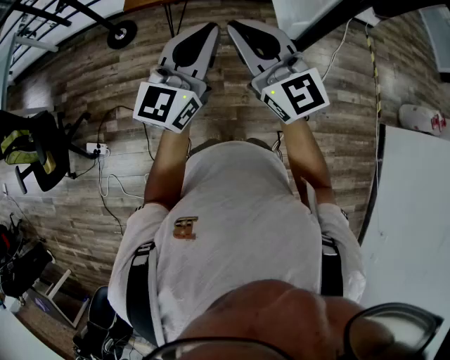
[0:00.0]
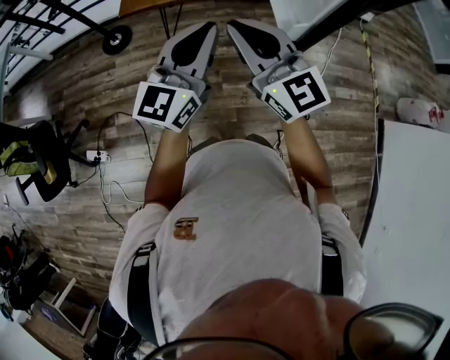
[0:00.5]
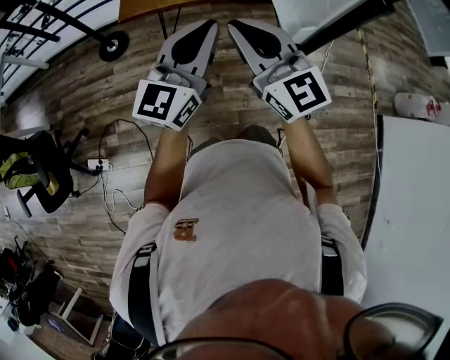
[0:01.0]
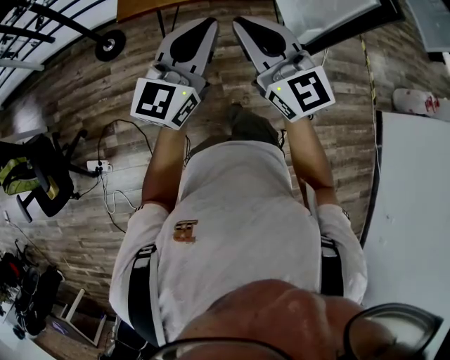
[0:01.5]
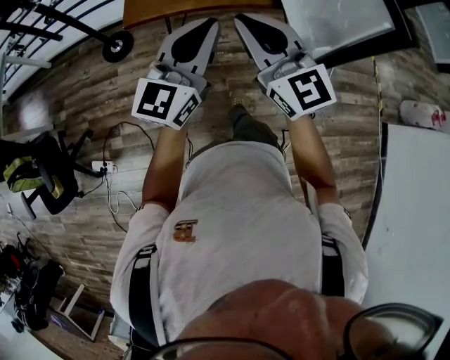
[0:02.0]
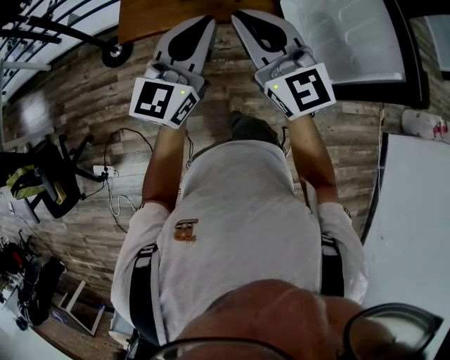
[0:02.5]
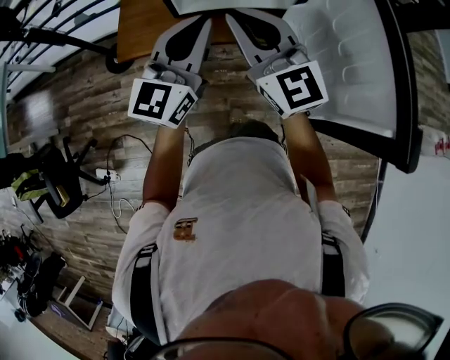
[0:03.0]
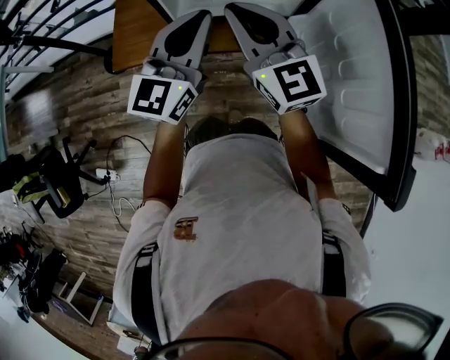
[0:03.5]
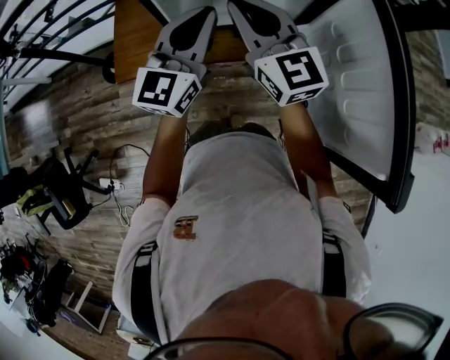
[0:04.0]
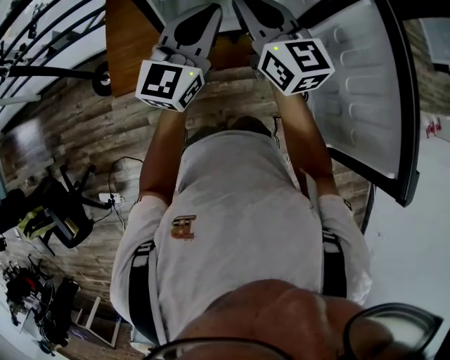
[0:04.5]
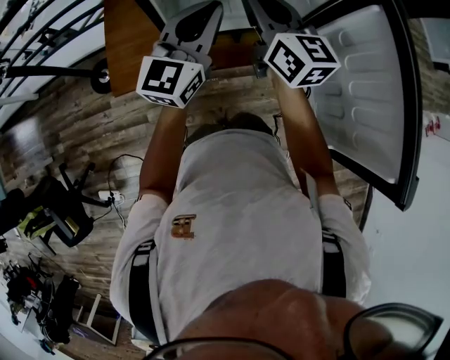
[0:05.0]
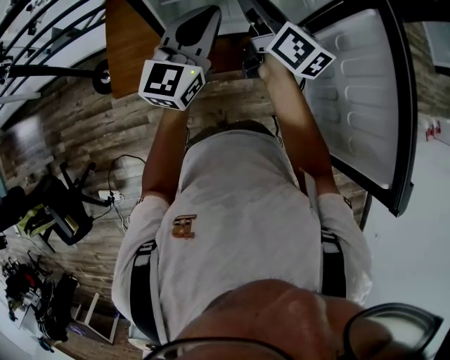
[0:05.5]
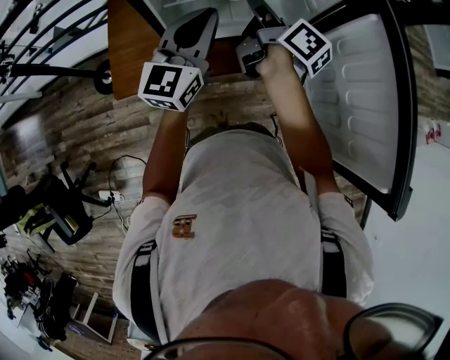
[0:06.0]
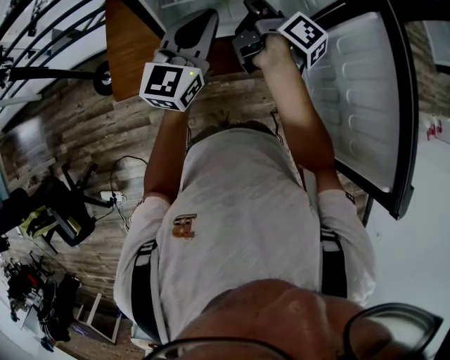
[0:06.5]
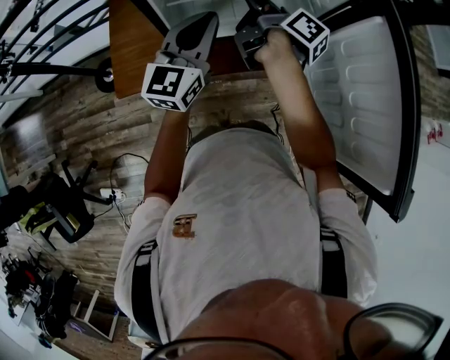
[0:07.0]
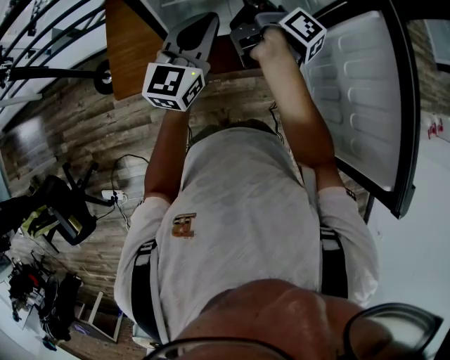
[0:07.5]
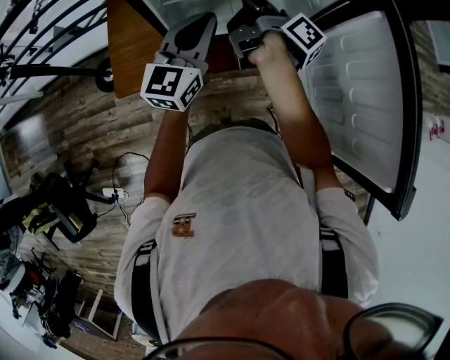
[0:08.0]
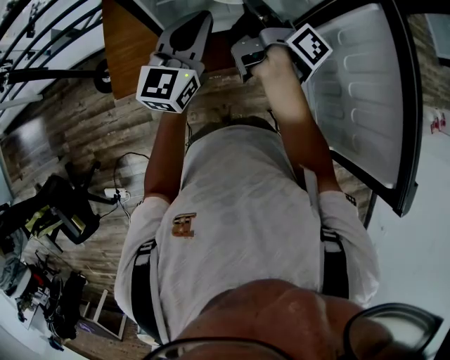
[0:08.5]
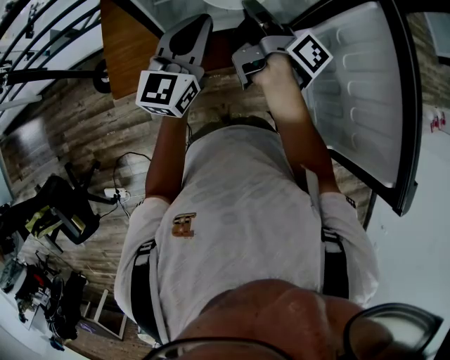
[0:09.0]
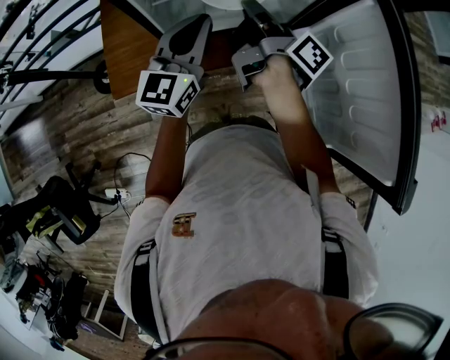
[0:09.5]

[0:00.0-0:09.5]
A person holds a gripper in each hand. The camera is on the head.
0.0 to 2.0 s: Both grippers travel together forward and to the left, about 20 cm.
2.0 to 4.0 s: Both grippers are carried forward, roughly 40 cm.
4.0 to 5.5 s: The right gripper travels forward and downward by some 15 cm, twists about 40 degrees clockwise, seen from behind, and opens up; the left gripper moves forward, approximately 10 cm.
5.5 to 7.5 s: The right gripper shifts approximately 5 cm downward, rotates around the line of its fingers by about 40 degrees, clockwise from behind, and closes its fingers.
7.5 to 9.5 s: There are only small adjustments of the grippers.

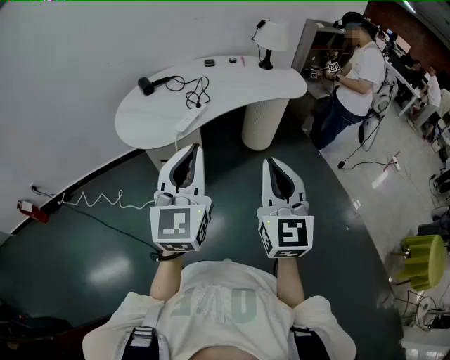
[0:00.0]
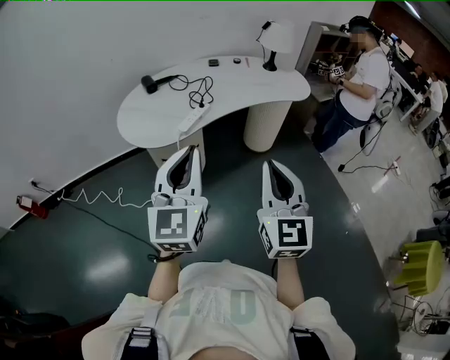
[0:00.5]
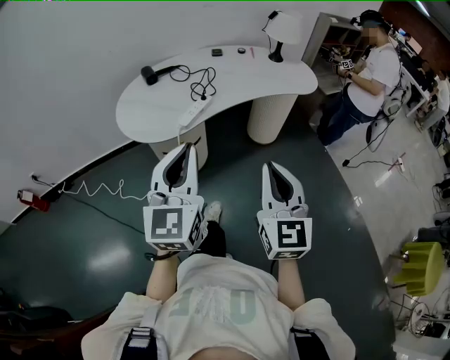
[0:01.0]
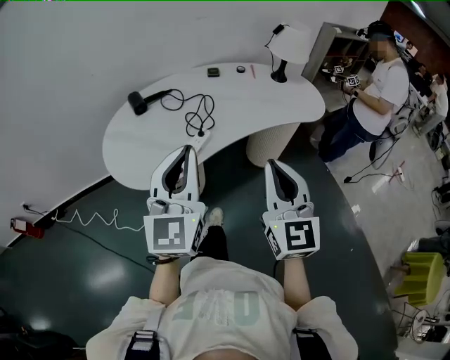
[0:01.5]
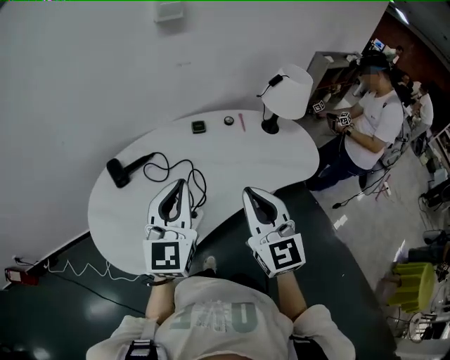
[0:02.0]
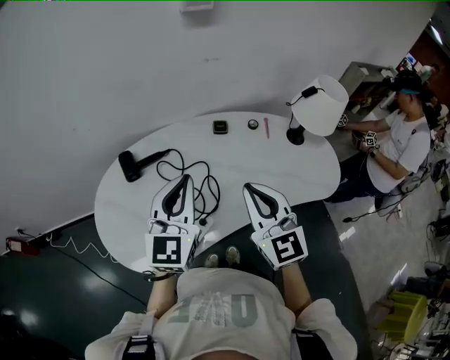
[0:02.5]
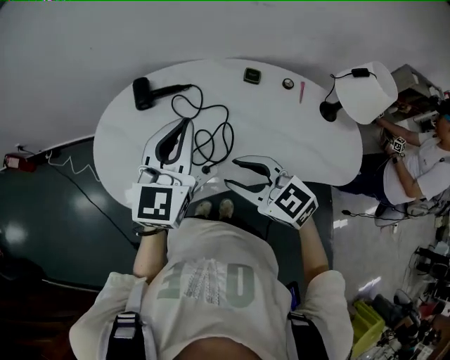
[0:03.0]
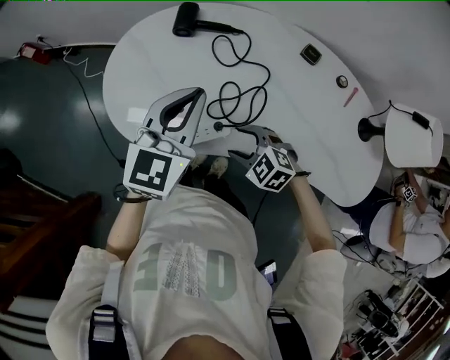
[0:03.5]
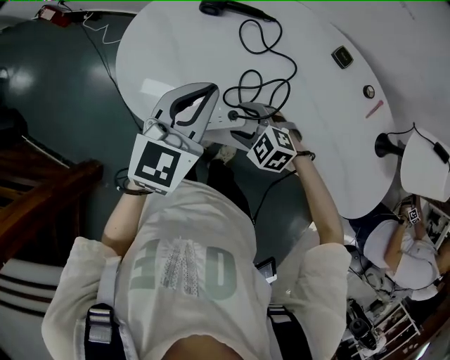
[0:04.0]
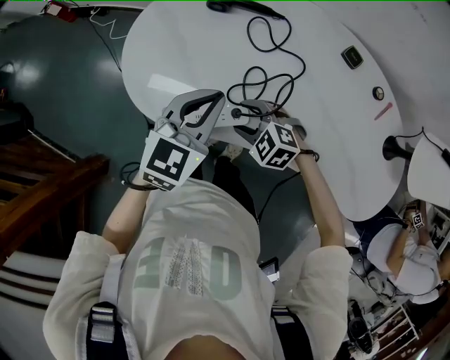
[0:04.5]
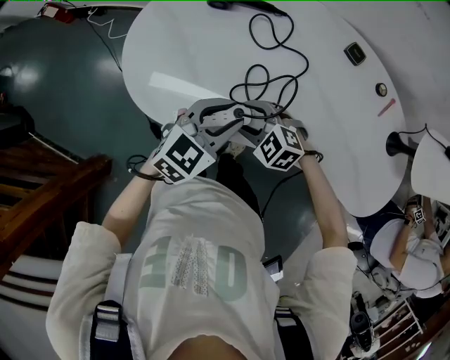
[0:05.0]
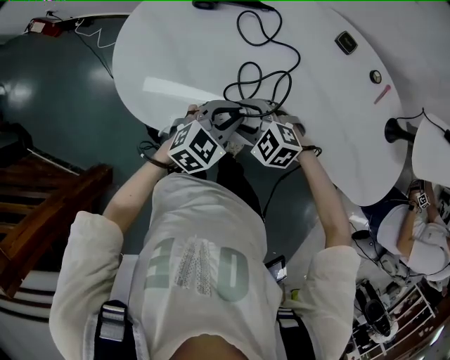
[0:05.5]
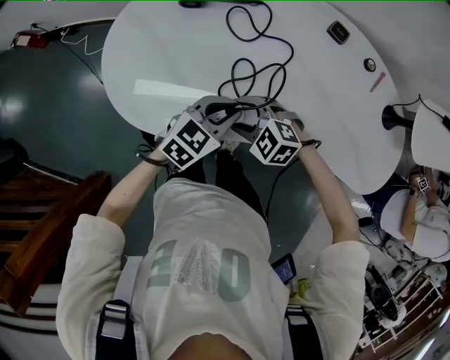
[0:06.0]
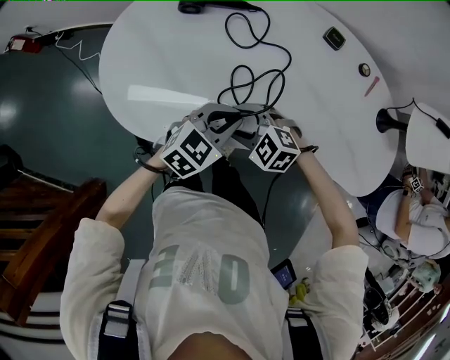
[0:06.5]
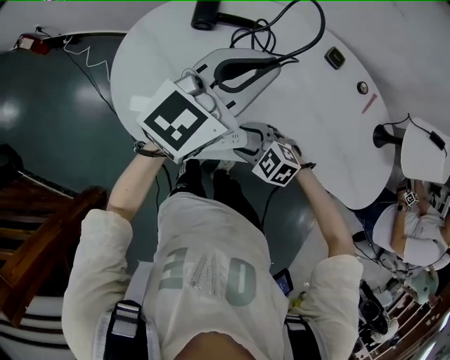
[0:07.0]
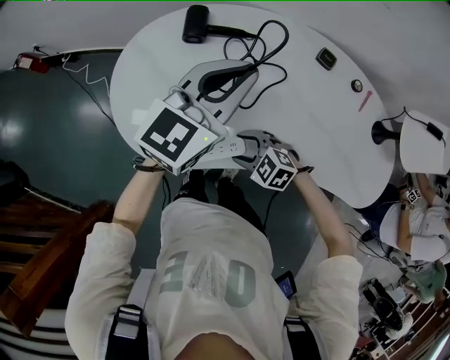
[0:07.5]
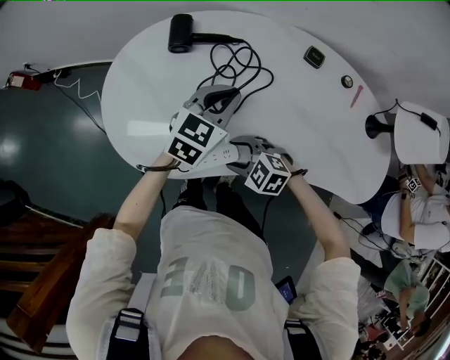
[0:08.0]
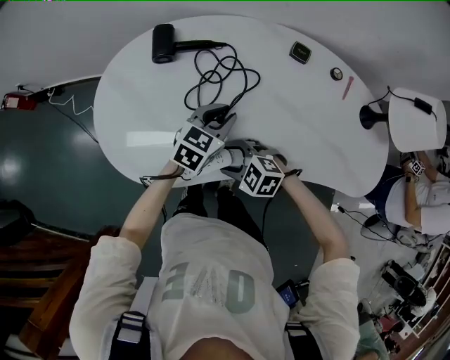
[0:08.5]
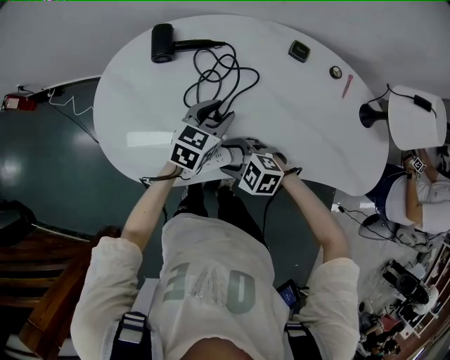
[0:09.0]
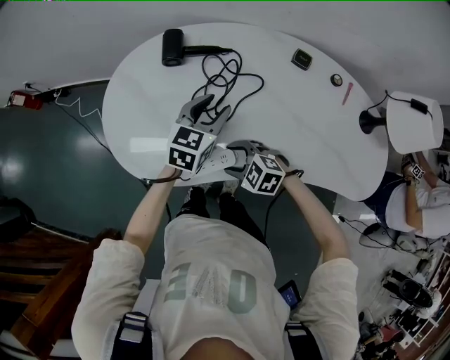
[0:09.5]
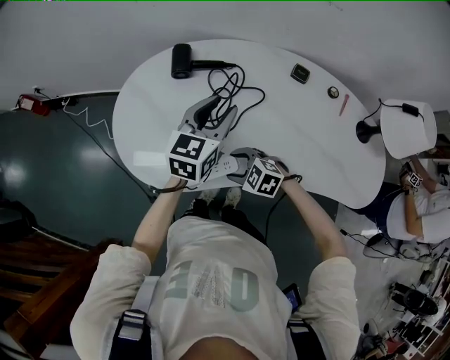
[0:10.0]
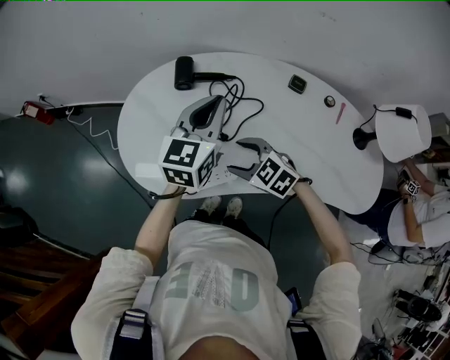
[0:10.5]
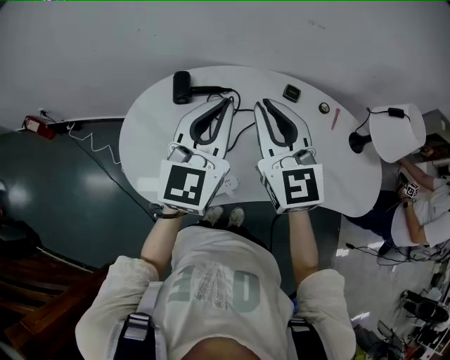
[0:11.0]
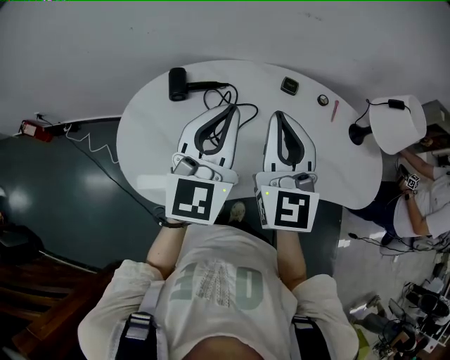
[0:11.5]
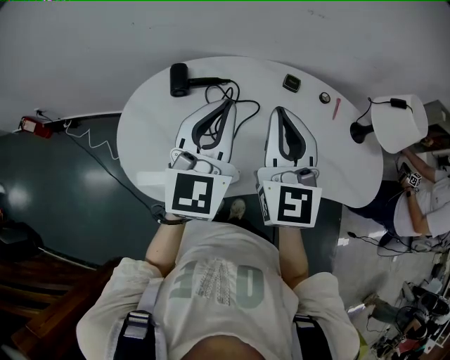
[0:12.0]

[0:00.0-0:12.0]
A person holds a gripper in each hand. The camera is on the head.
0.0 to 2.0 s: Both grippers are carried forward, about 50 cm.
2.0 to 4.0 s: The left gripper is displaced downward by some 15 cm, and changes its angle by approximately 40 degrees. Meanwhile the right gripper moves downward, some 35 cm, tips its fingers downward by approximately 50 degrees, and opens.
4.0 to 6.0 s: The left gripper moves downward, approximately 15 cm, and swivels roughly 30 degrees.
6.0 to 8.0 s: The left gripper goes upward and returns, about 20 cm each way.
8.0 to 10.0 s: The left gripper moves upward, roughly 5 cm, and opens.
10.0 to 12.0 s: The left gripper goes roughly 15 cm upward, rotates some 20 degrees, and closes, while the right gripper shifts approximately 35 cm upward, angles its fingers upward, by about 50 degrees, and closes up.

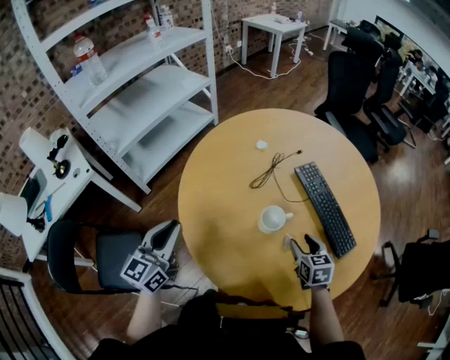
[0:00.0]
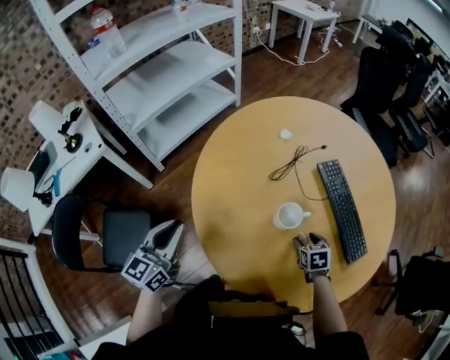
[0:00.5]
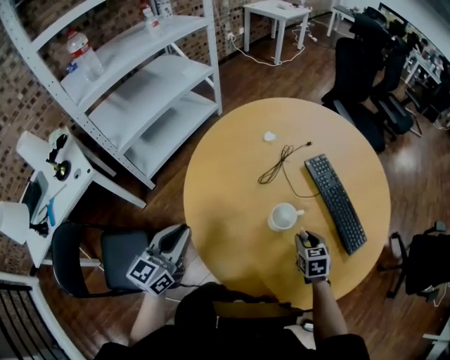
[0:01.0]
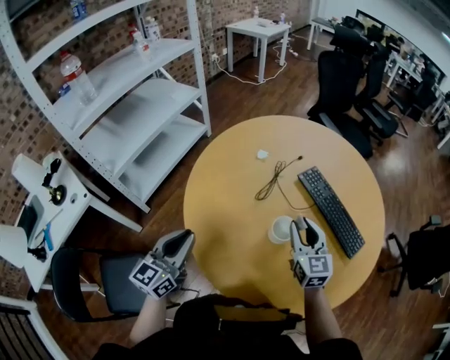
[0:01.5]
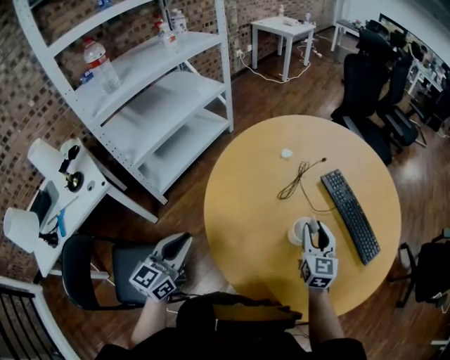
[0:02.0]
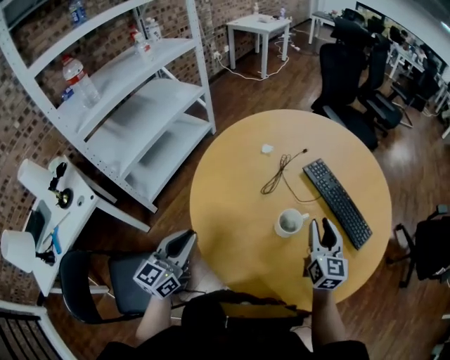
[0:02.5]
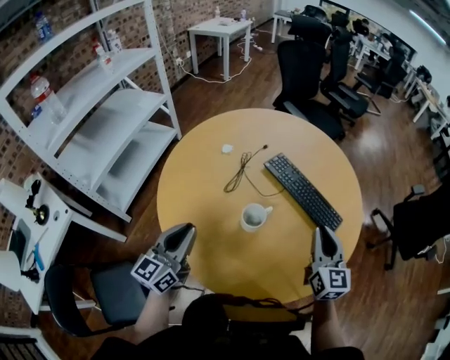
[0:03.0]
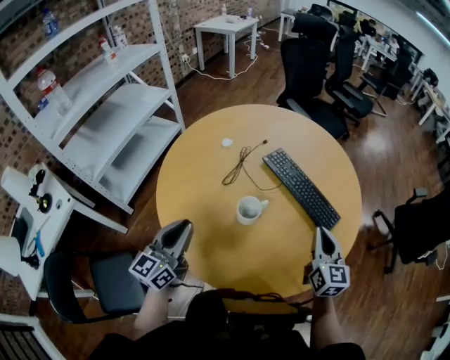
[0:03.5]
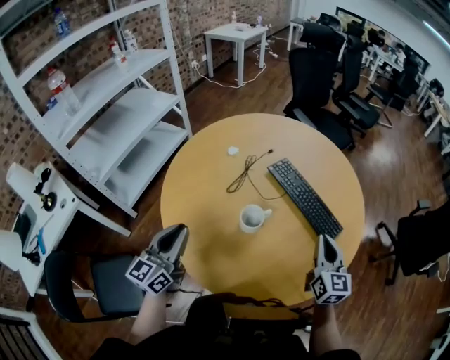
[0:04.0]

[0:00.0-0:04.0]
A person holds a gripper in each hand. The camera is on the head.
0.0 to 2.0 s: The right gripper moves up and down over approximately 20 cm, changing direction 2 times, and turns by roughly 30 degrees. The left gripper shifts roughly 5 cm to the left.
2.0 to 4.0 s: The right gripper is displaced to the right by approximately 20 cm, and closes up, while the left gripper moves to the right, approximately 15 cm.

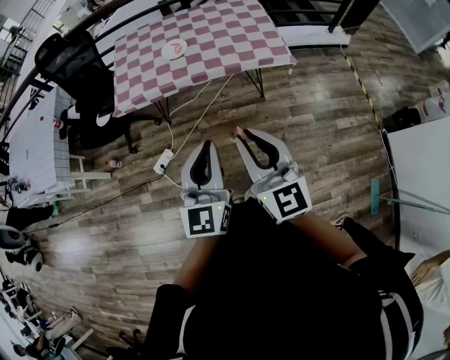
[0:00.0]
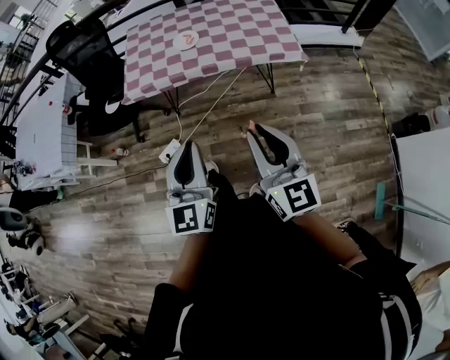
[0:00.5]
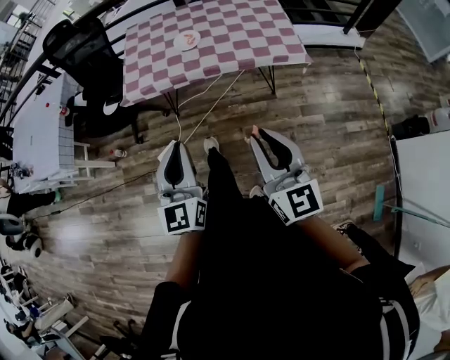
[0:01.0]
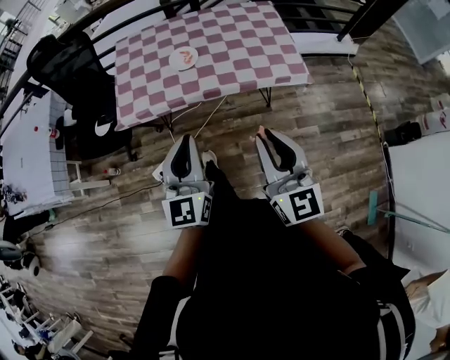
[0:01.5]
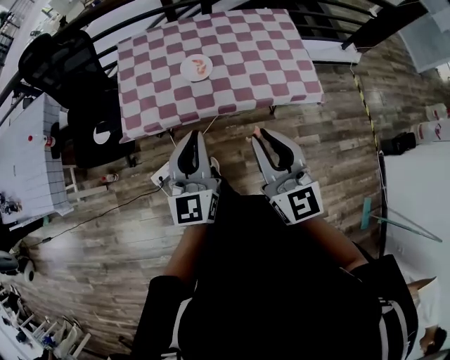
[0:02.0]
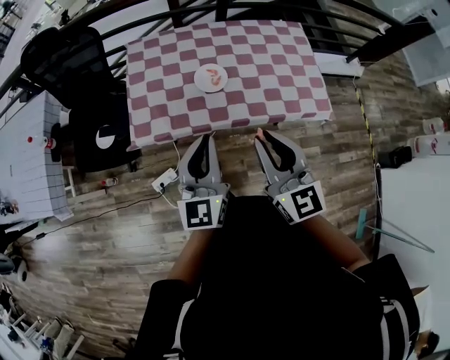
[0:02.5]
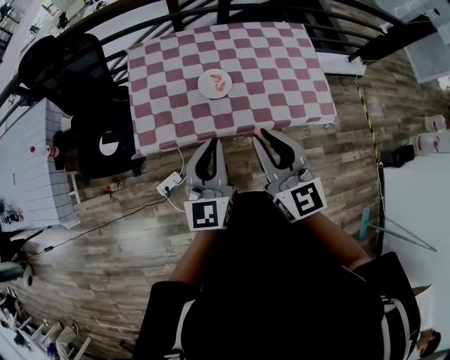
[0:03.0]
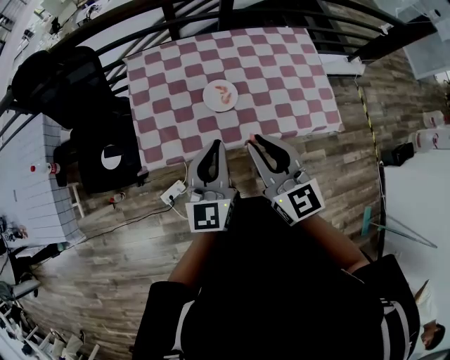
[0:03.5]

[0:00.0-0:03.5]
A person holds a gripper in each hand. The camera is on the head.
0.0 to 2.0 s: The left gripper goes roughly 35 cm forward and to the left. The right gripper is displaced forward by some 25 cm.
2.0 to 3.5 s: The right gripper goes roughly 20 cm forward and to the left. Meanwhile the left gripper is displaced forward by approximately 15 cm.
